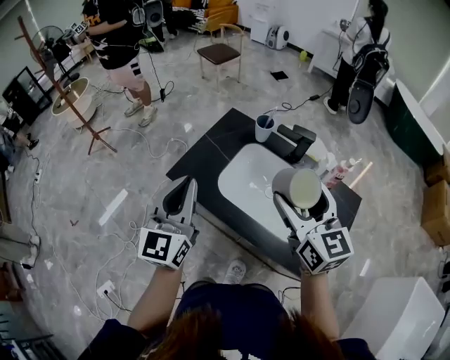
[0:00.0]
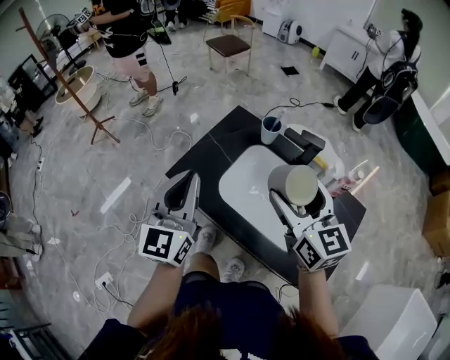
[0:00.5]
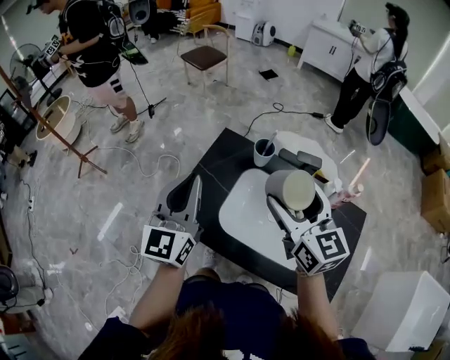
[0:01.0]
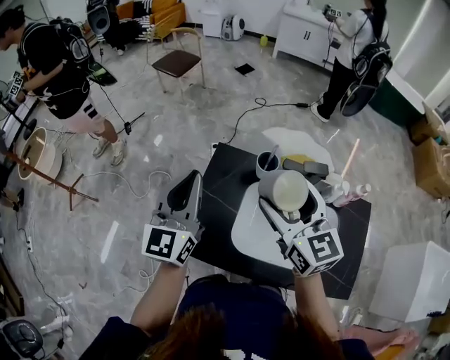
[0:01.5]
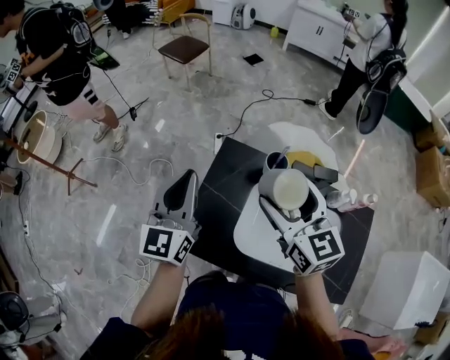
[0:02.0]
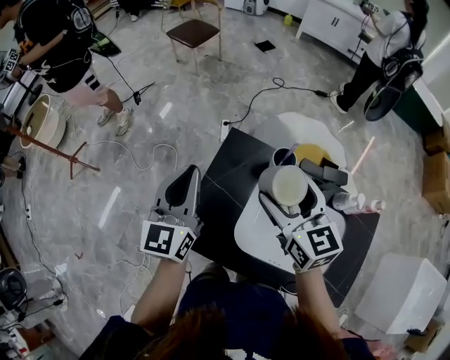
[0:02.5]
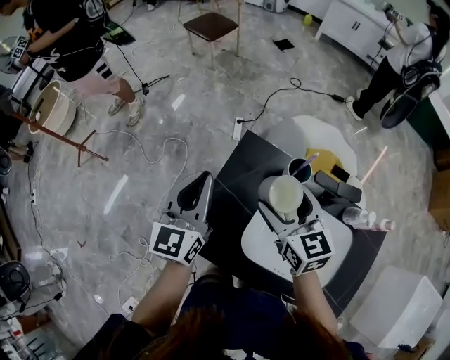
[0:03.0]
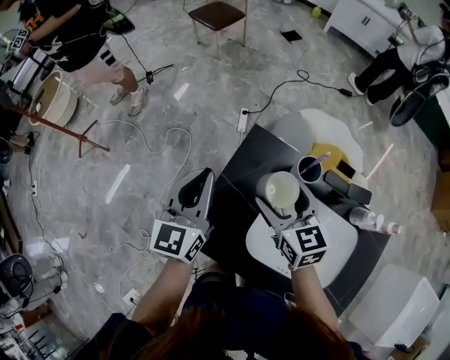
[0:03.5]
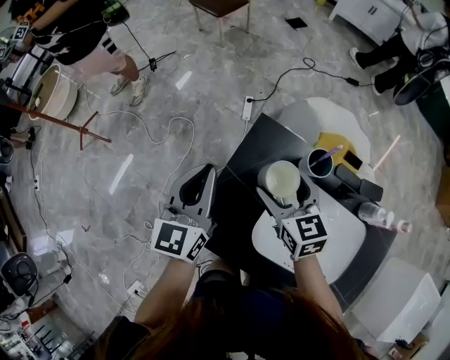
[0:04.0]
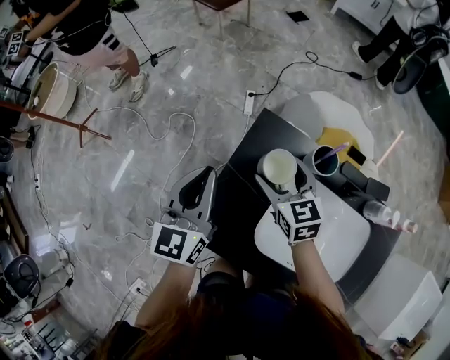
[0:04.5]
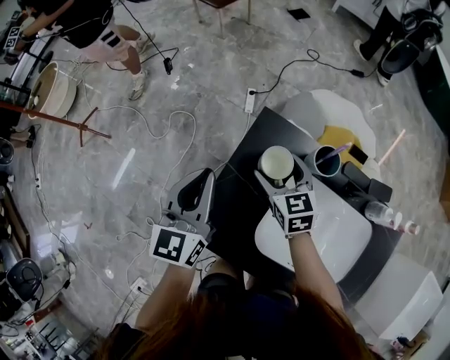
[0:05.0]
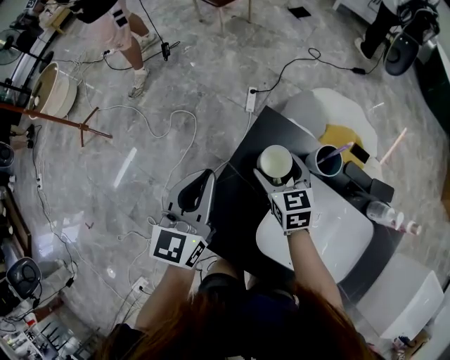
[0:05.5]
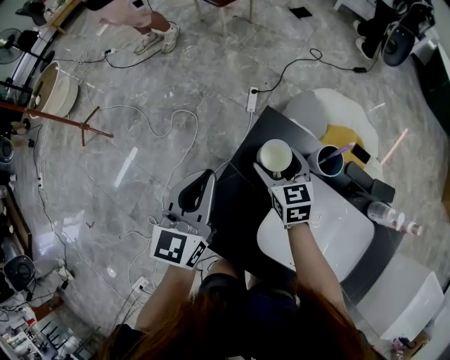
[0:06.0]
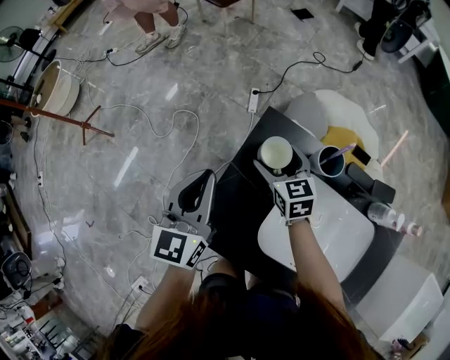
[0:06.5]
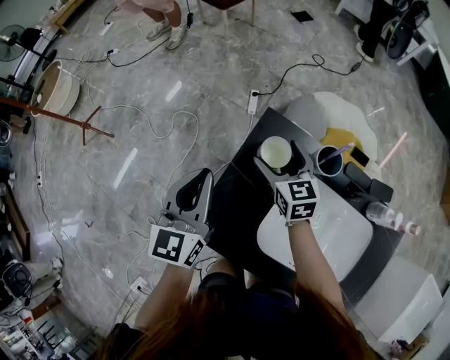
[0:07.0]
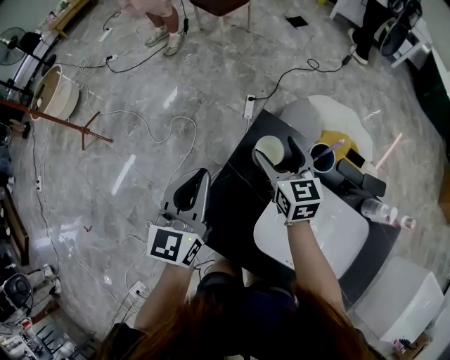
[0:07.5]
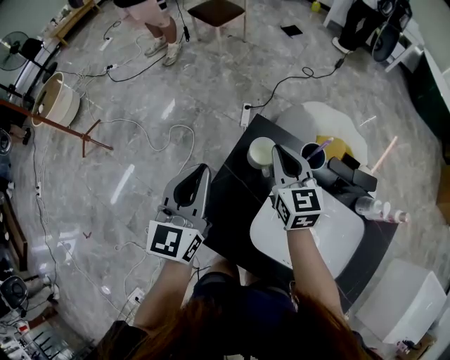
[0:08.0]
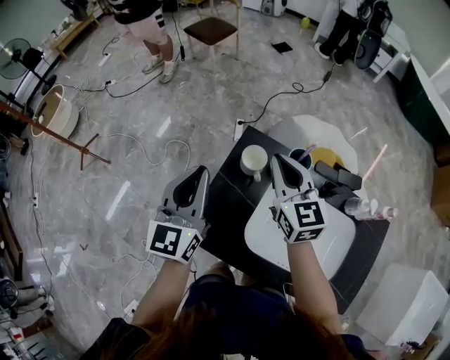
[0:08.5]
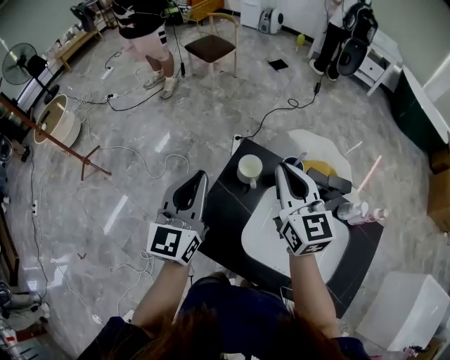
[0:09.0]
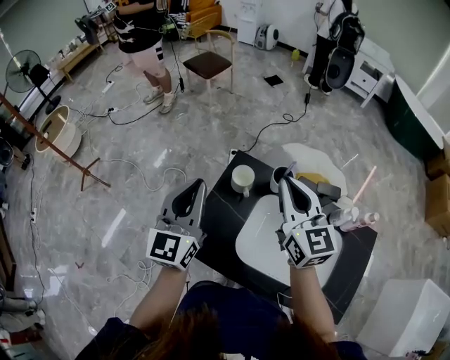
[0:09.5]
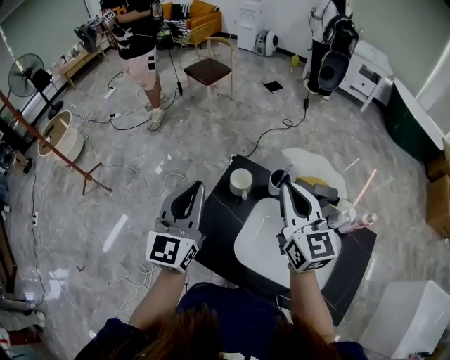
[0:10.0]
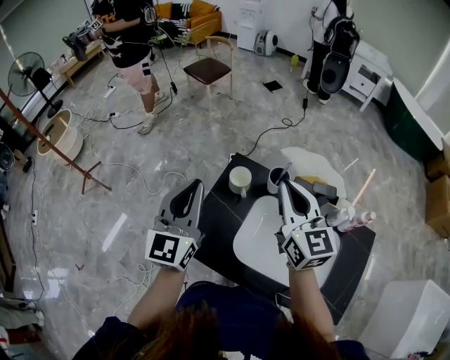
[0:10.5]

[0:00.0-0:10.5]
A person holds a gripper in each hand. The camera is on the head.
0:00.0 to 0:02.0: The left gripper goes approximately 35 cm forward. Meanwhile the right gripper is displaced forward and to the left by about 35 cm.
0:02.0 to 0:04.0: The left gripper is displaced downward and forward by approximately 15 cm, while the right gripper heads downward and forward, covering roughly 20 cm.
0:04.0 to 0:06.5: The right gripper moves downward and forward, roughly 15 cm.
0:06.5 to 0:08.5: The left gripper is displaced upward by roughly 10 cm. Meanwhile the right gripper travels upward by approximately 20 cm, rotates about 20 degrees, and closes.
0:08.5 to 0:10.5: The right gripper heads upward, backward and to the right, covering some 15 cm. Meanwhile the left gripper moves upward and backward, about 10 cm.

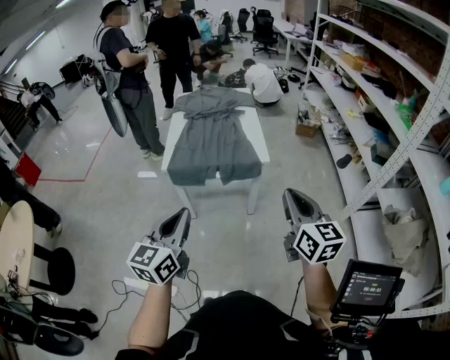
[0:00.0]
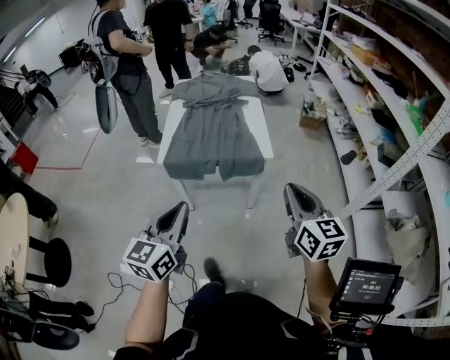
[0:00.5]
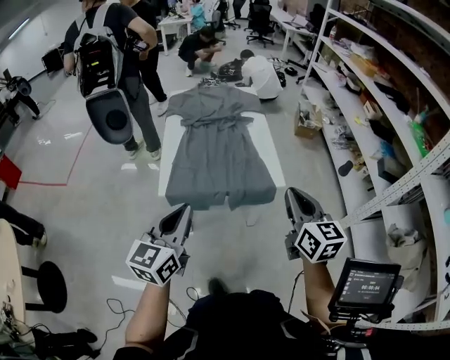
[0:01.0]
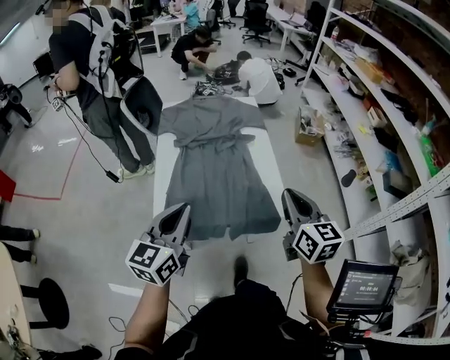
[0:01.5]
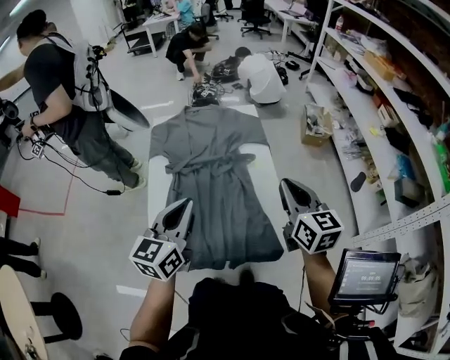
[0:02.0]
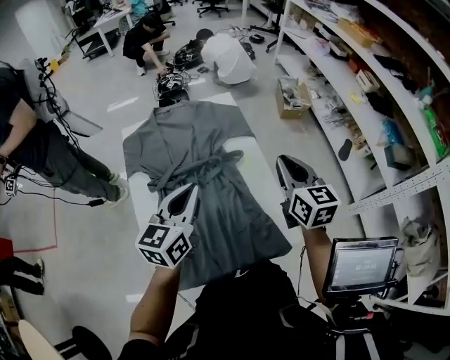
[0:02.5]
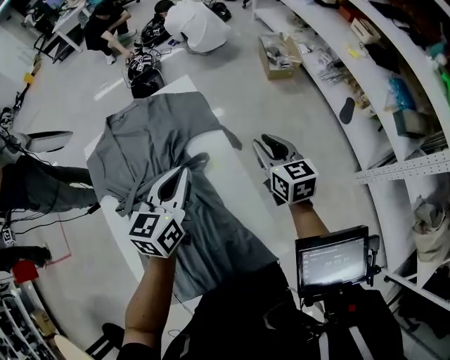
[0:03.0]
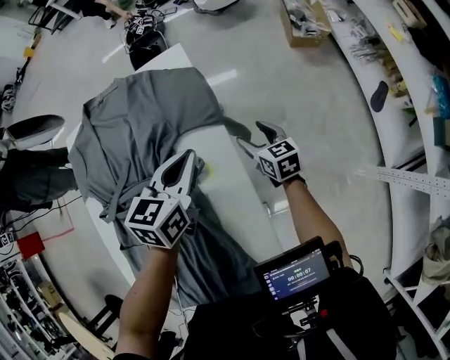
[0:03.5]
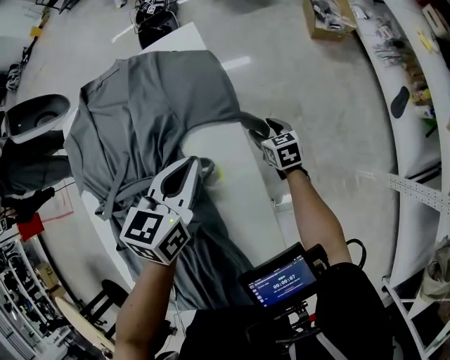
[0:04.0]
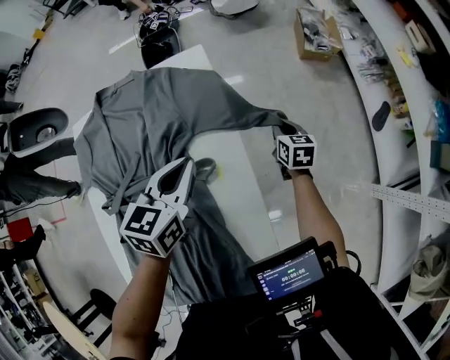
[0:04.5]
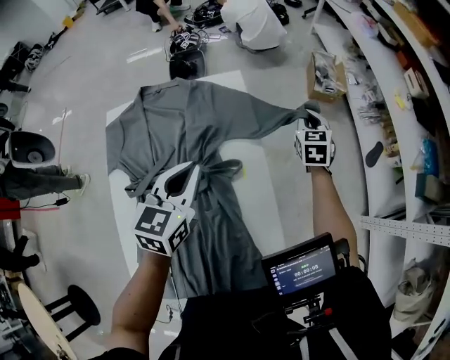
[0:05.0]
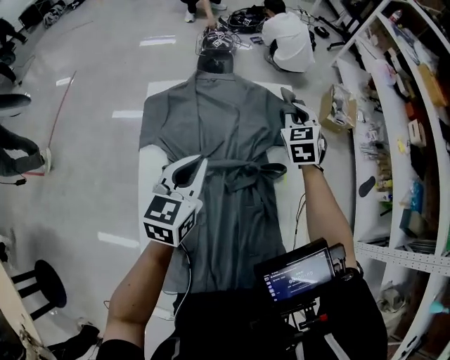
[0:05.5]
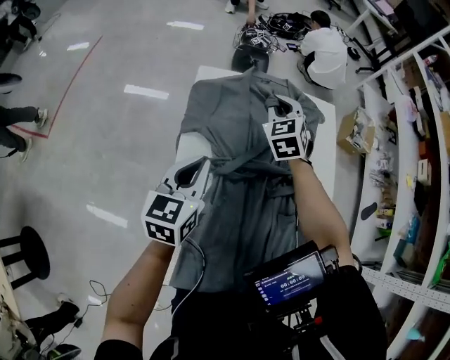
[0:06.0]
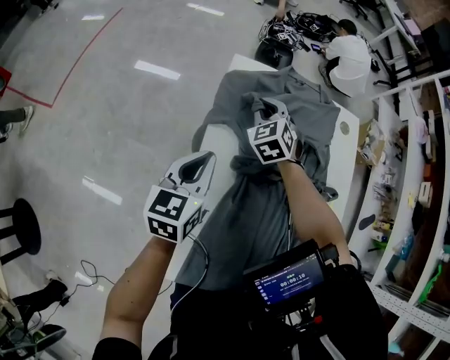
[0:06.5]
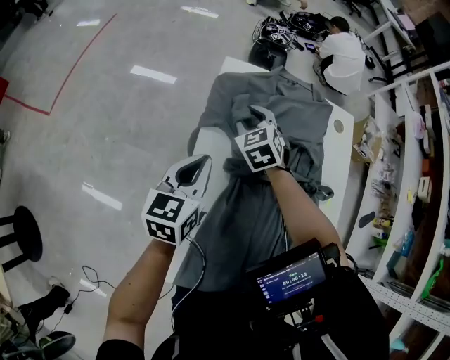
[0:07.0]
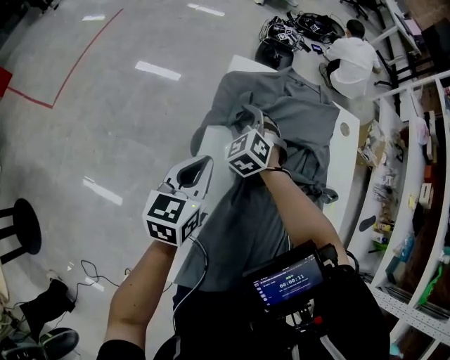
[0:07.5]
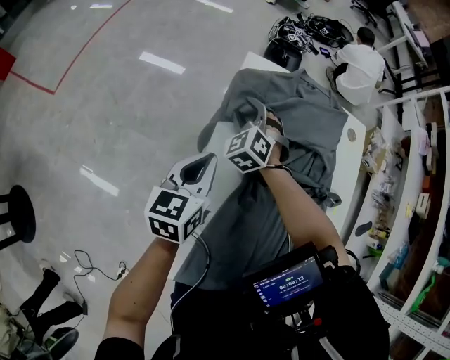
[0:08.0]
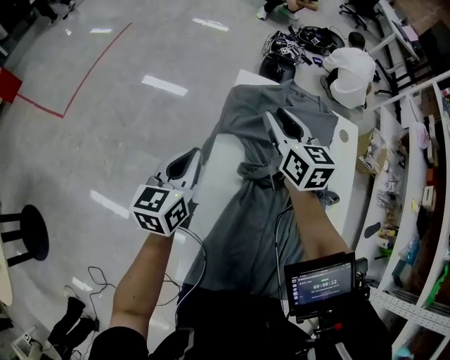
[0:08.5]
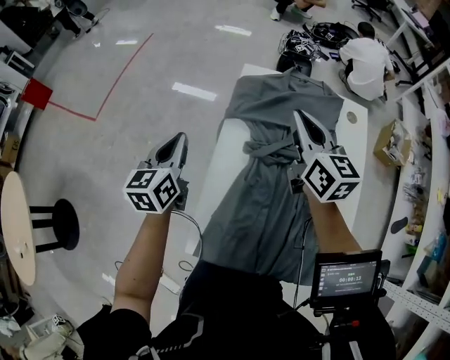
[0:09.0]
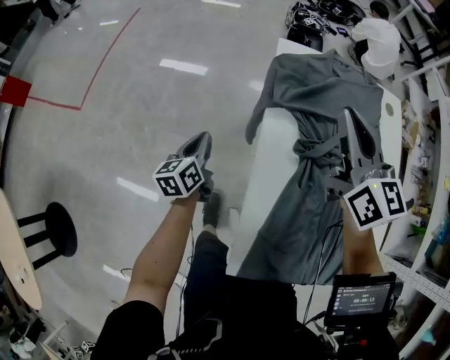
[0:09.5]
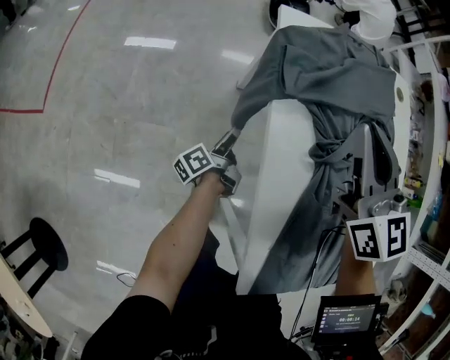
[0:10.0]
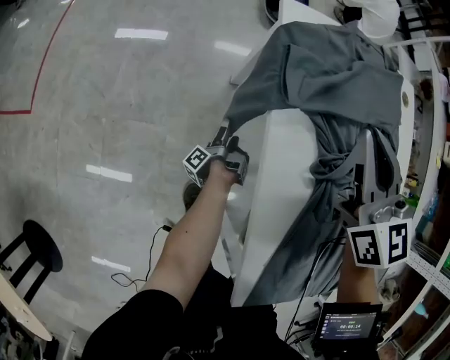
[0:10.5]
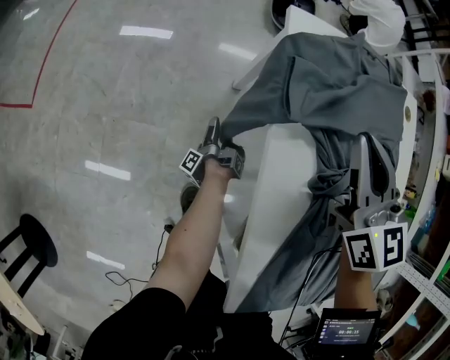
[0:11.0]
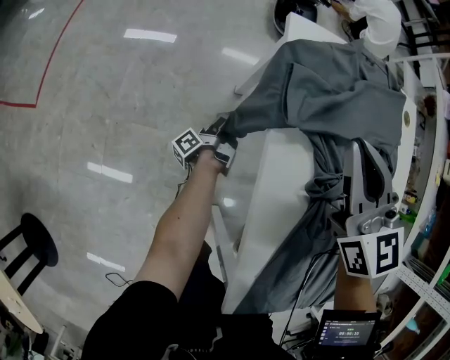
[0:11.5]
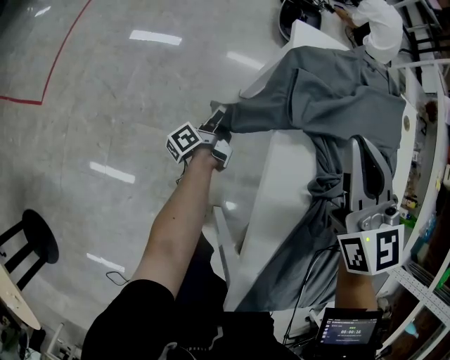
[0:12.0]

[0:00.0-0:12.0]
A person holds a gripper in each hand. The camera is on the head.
0:00.0 to 0:02.0: The pair of grippers is taken forward, some 50 cm.
0:02.0 to 0:04.0: The left gripper heads forward, downward and to the right, covering some 50 cm, and changes its angle by about 30 degrees; the right gripper shifts about 60 cm downward and forward, angles its fingers downward, by roughly 30 degrees, and opens its fingers.
0:04.0 to 0:06.0: The left gripper is displaced to the left by roughly 35 cm, and rotates about 30 degrees. The right gripper shifts some 50 cm to the left and upward, rolls counterclockwise, seen from behind, by roughly 50 degrees, and closes up.
0:06.0 to 0:08.0: The left gripper goes roughly 10 cm to the left and downward, while the right gripper travels to the left and downward by some 25 cm, swivels roughly 30 degrees, and opens.
0:08.0 to 0:10.0: The left gripper heads downward, covering some 30 cm, twists roughly 60 degrees counterclockwise, seen from behind, and opens; the right gripper shifts roughly 20 cm upward and backward, rotates around the line of its fingers by approximately 50 degrees, clockwise from behind, and closes its fingers.
0:10.0 to 0:12.0: The left gripper heads forward, covering roughly 10 cm, moves some 10 cm downward and comes back, and closes; the right gripper moves roughly 5 cm.

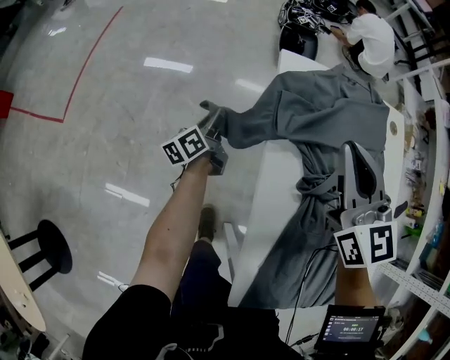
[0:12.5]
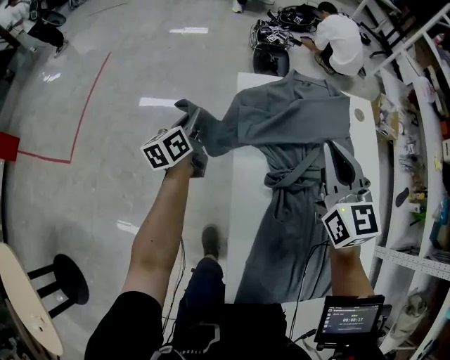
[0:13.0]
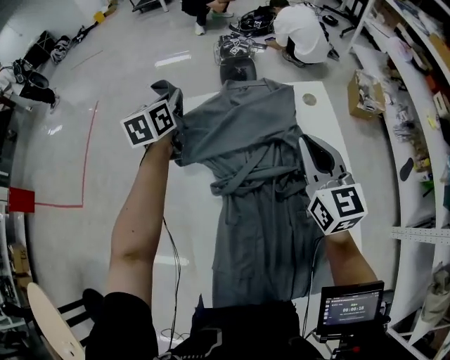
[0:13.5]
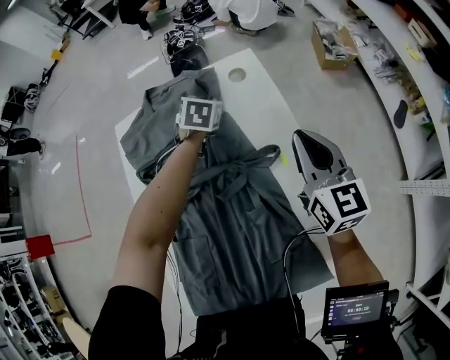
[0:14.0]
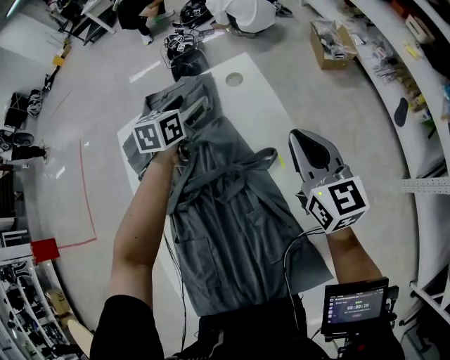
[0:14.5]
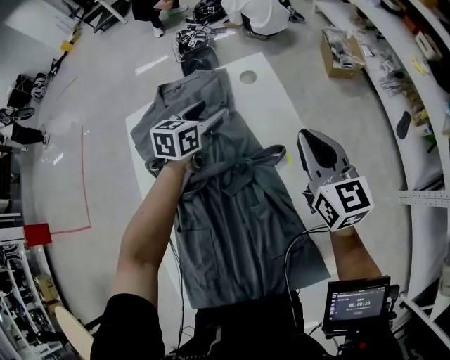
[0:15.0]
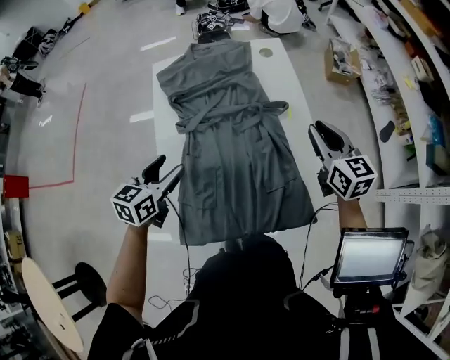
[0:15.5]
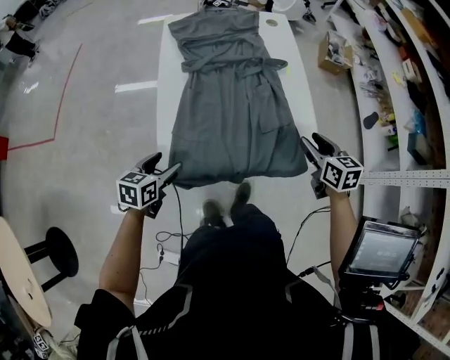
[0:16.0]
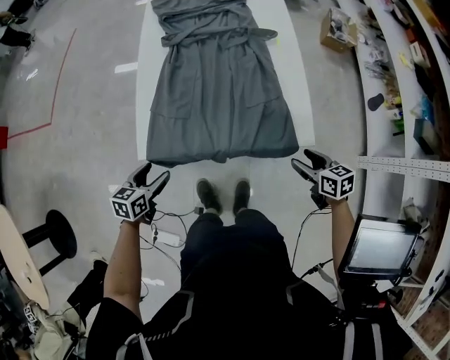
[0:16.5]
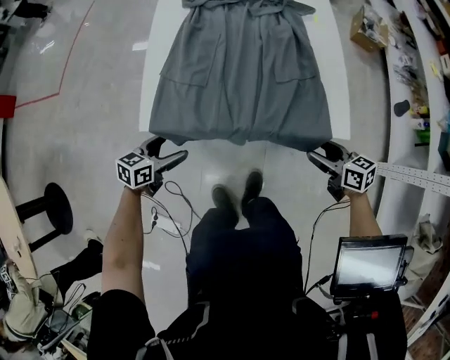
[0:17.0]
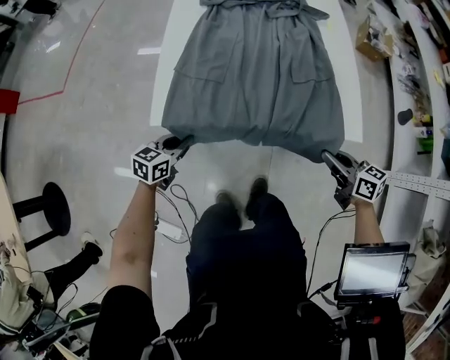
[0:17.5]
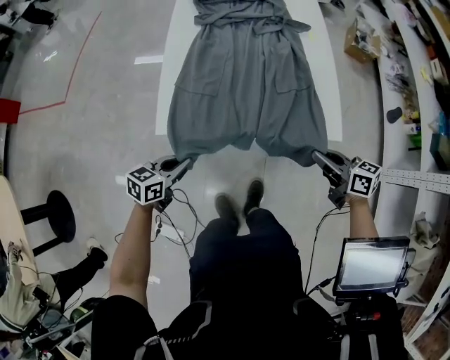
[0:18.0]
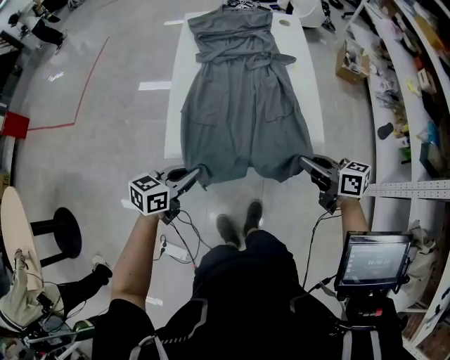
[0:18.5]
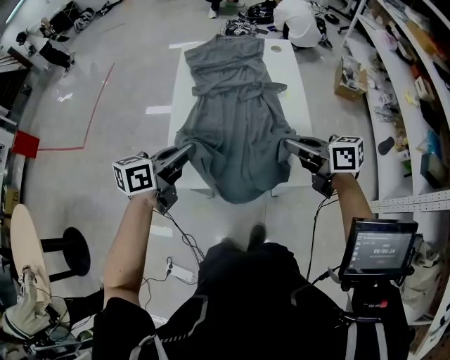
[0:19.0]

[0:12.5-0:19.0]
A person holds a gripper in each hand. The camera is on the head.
0:12.5 to 0:14.5: The two grippers travel together, to the right, some 50 cm. The right gripper turns by about 30 degrees. Meanwhile the left gripper twists approximately 50 degrees clockwise, seen from behind, and opens.
0:14.5 to 0:17.0: The pair of grippers is taken backward, approximately 50 cm. The right gripper travels downward by roughly 25 cm, rotates approximately 50 degrees, and opens up.
0:17.0 to 0:19.0: The right gripper travels upward and forward by some 30 cm, and closes its fingers, while the left gripper shifts some 35 cm upward, and closes up.
